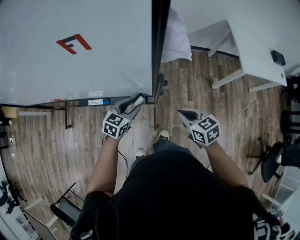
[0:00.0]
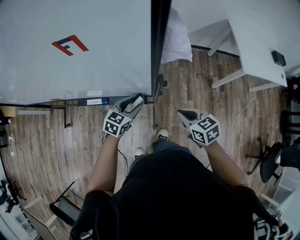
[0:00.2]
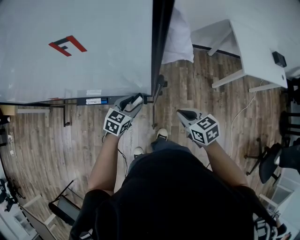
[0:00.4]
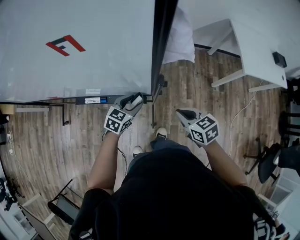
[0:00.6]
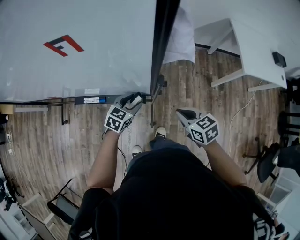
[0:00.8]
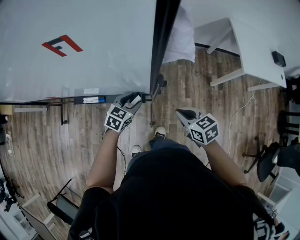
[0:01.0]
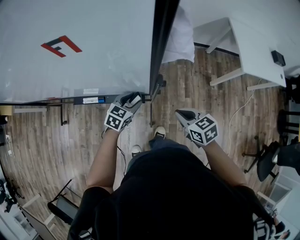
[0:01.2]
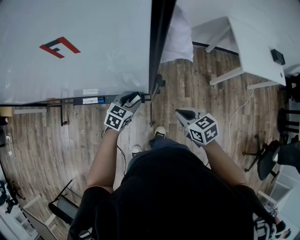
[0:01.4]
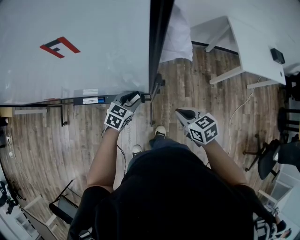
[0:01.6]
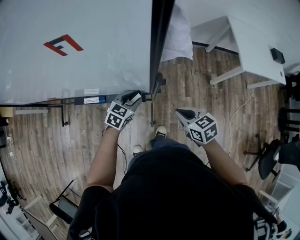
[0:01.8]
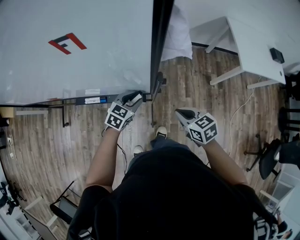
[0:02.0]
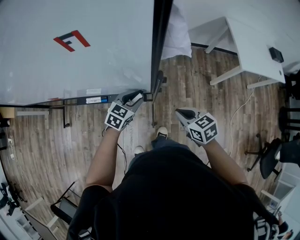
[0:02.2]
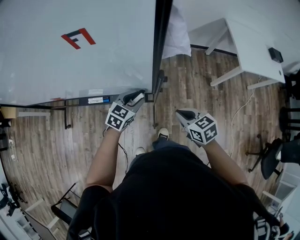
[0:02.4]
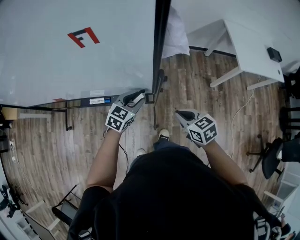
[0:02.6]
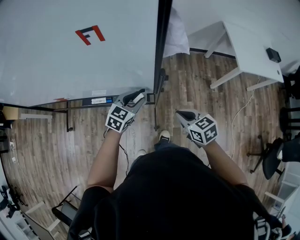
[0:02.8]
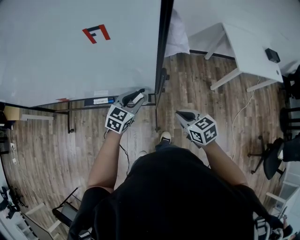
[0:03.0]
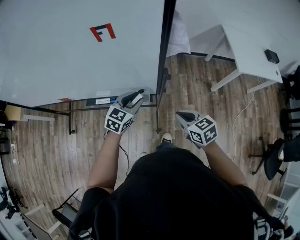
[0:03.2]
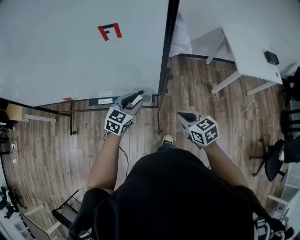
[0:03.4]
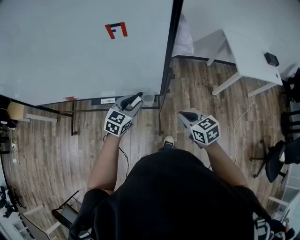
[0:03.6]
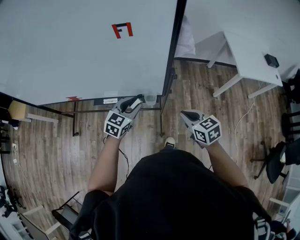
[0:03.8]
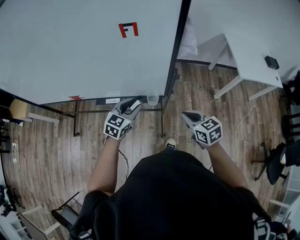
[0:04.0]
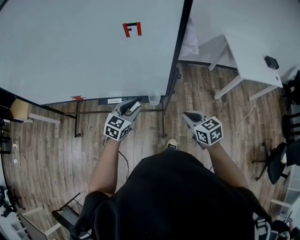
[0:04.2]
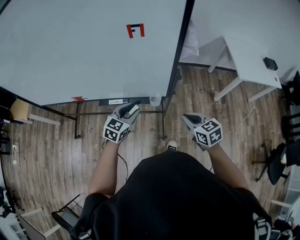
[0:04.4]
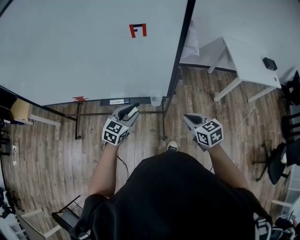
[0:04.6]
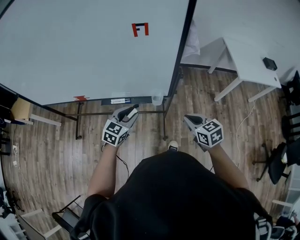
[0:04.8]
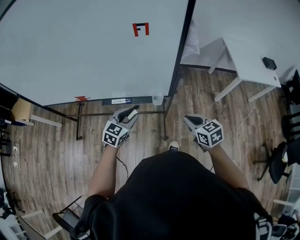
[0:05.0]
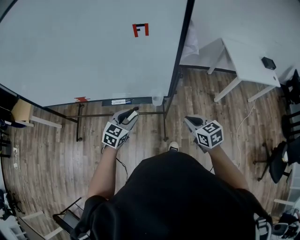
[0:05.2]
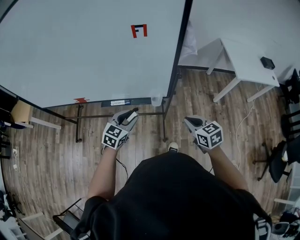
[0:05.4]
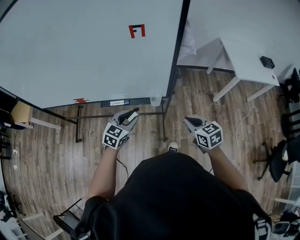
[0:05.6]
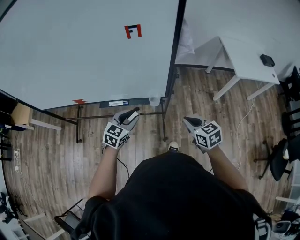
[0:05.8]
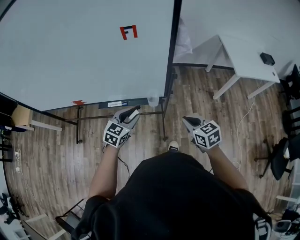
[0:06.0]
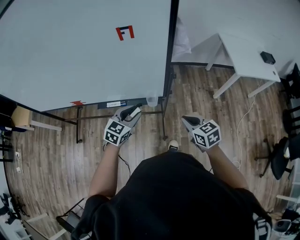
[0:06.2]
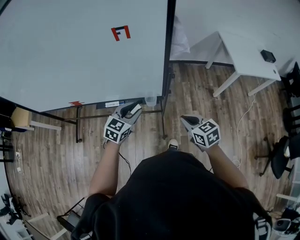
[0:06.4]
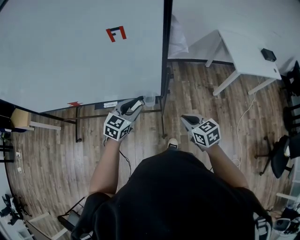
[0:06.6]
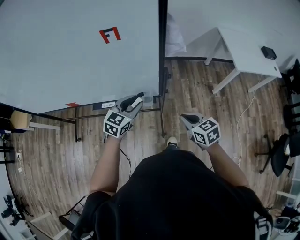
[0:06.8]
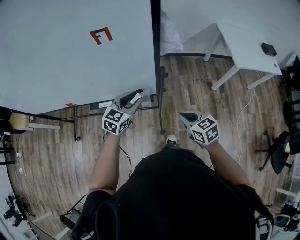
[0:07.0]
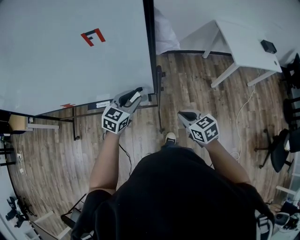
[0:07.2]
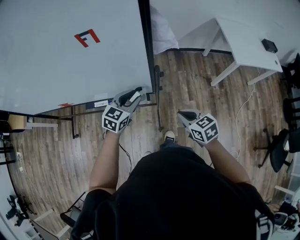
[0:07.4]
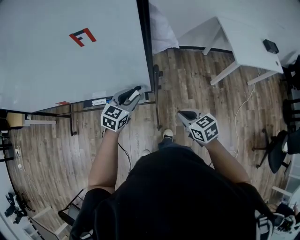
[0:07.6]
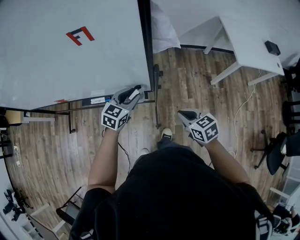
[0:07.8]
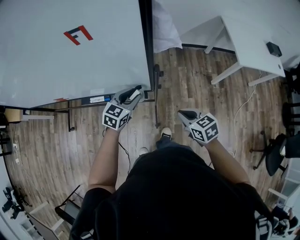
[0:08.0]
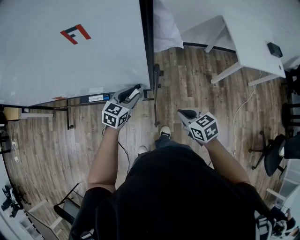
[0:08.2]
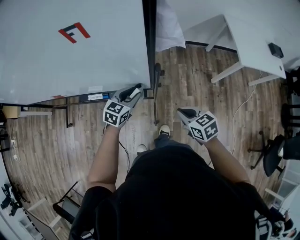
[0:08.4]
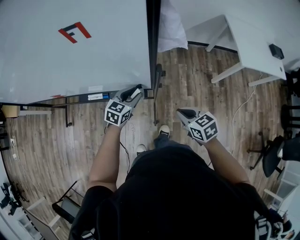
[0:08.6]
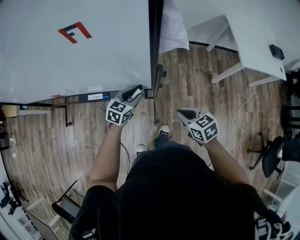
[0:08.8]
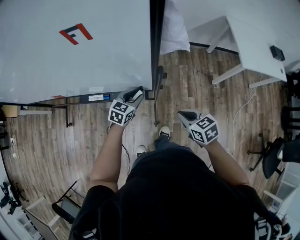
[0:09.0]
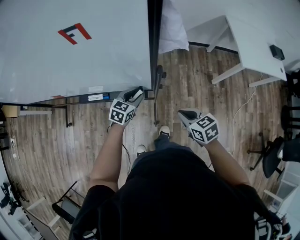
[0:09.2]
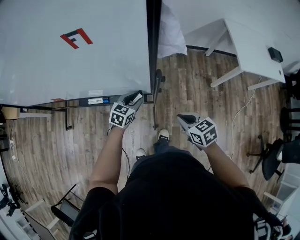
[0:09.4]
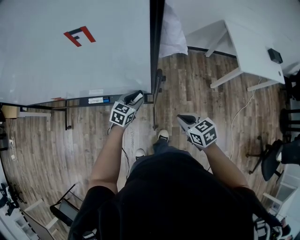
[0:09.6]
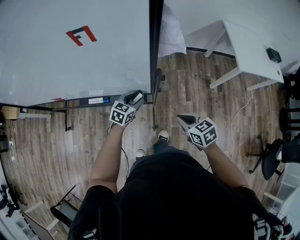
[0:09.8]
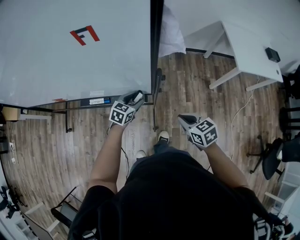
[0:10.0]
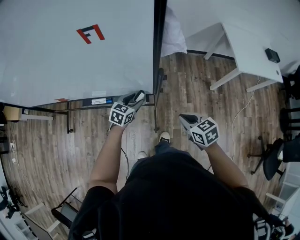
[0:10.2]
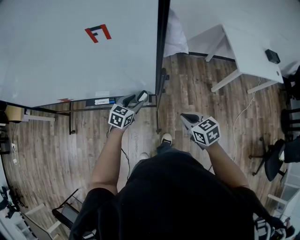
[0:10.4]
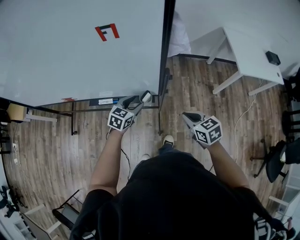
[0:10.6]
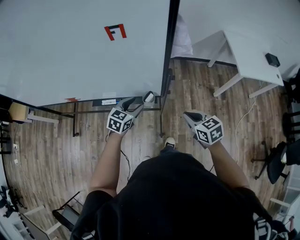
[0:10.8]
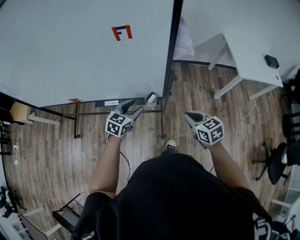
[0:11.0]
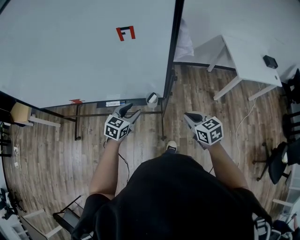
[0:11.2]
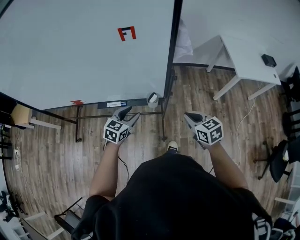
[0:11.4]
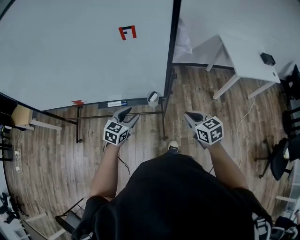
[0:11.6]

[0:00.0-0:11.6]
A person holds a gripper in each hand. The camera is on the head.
0:00.0 to 0:01.4: The left gripper shifts by about 5 cm.
0:01.4 to 0:02.8: The left gripper moves upward, roughly 10 cm. Meanwhile the right gripper changes place by roughly 5 cm.
0:02.8 to 0:04.4: The left gripper shifts about 15 cm to the left and backward. The right gripper heads backward and upward, covering some 10 cm.
0:04.4 to 0:05.8: The grippers stay close to where they were, moving slightly.
0:05.8 to 0:07.2: The right gripper shifts by roughly 5 cm, while the left gripper moves forward and to the right, approximately 15 cm.
0:07.2 to 0:08.8: The left gripper moves downward, roughly 10 cm, while the right gripper changes place by some 5 cm.
0:08.8 to 0:10.2: The grippers make only small movements.
0:10.2 to 0:11.6: The right gripper travels upward by about 5 cm; the left gripper moves backward, upward and to the left, about 20 cm.

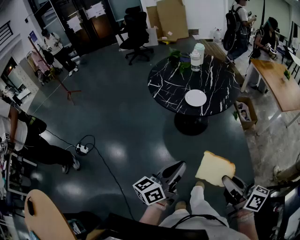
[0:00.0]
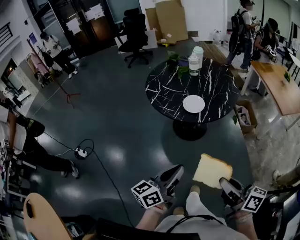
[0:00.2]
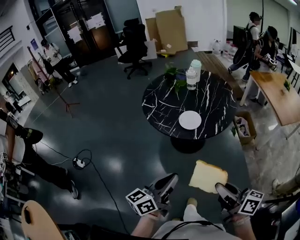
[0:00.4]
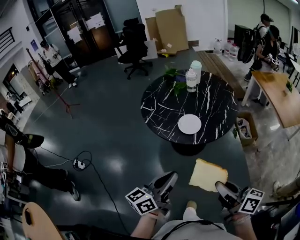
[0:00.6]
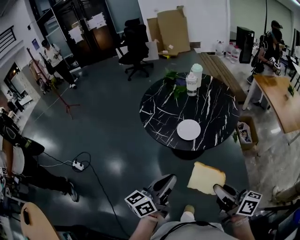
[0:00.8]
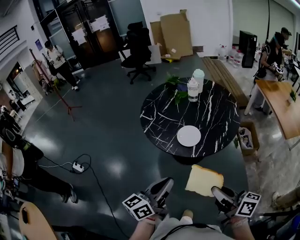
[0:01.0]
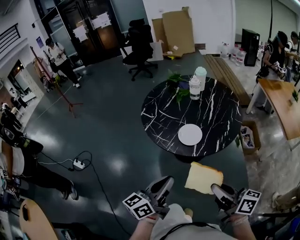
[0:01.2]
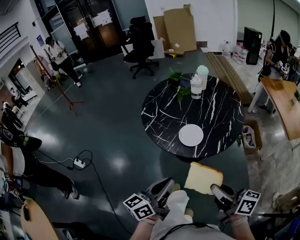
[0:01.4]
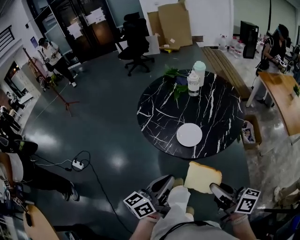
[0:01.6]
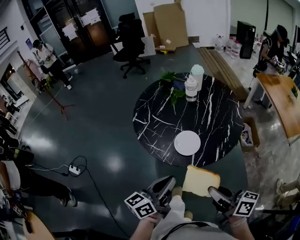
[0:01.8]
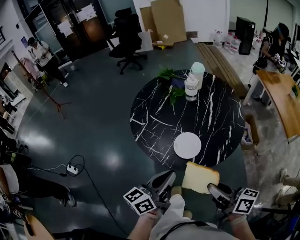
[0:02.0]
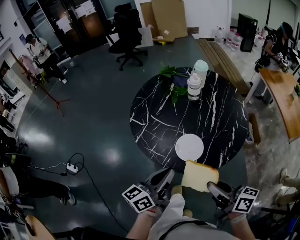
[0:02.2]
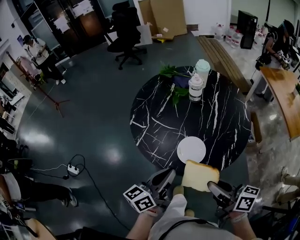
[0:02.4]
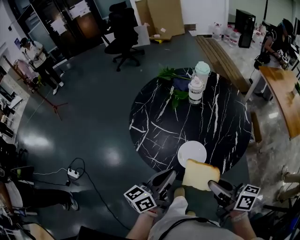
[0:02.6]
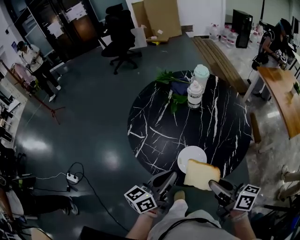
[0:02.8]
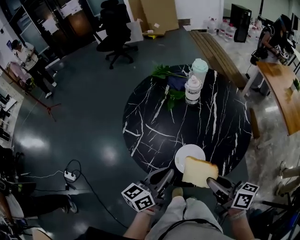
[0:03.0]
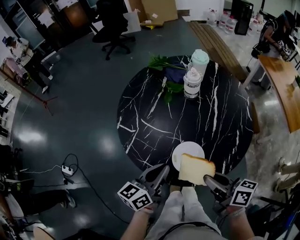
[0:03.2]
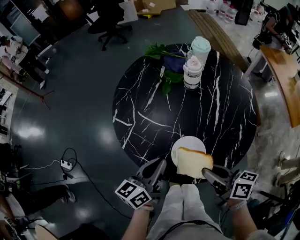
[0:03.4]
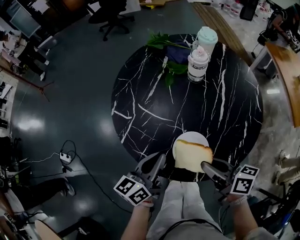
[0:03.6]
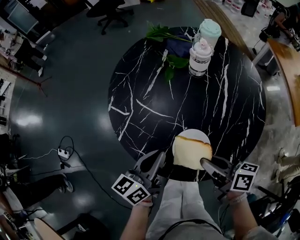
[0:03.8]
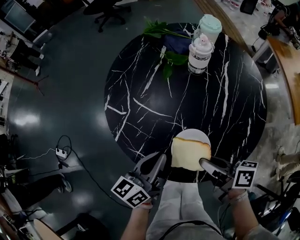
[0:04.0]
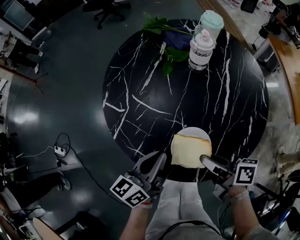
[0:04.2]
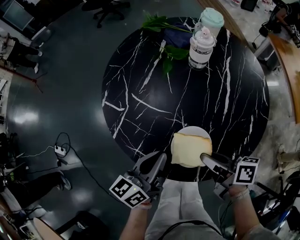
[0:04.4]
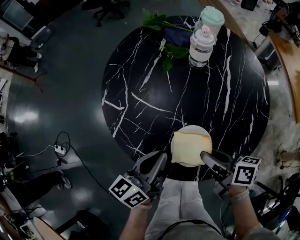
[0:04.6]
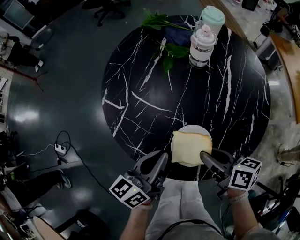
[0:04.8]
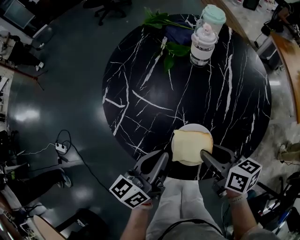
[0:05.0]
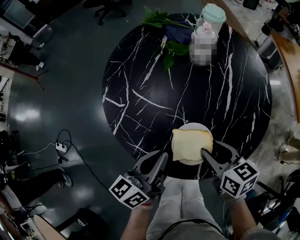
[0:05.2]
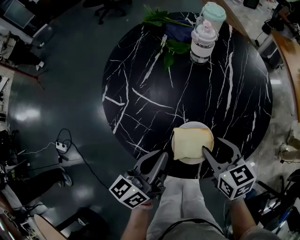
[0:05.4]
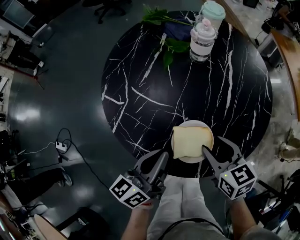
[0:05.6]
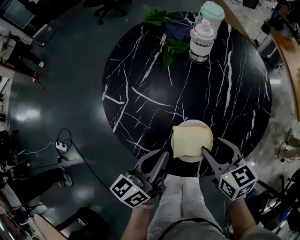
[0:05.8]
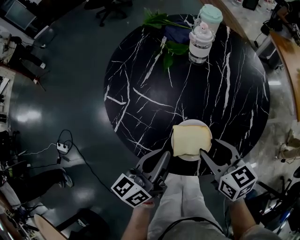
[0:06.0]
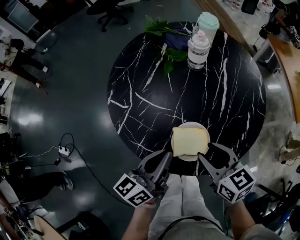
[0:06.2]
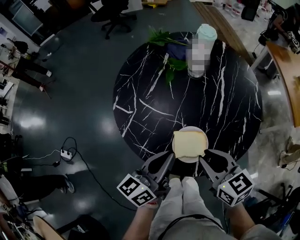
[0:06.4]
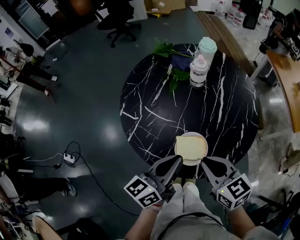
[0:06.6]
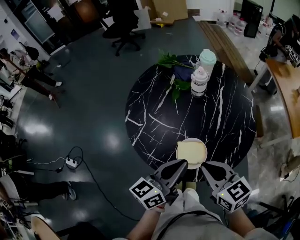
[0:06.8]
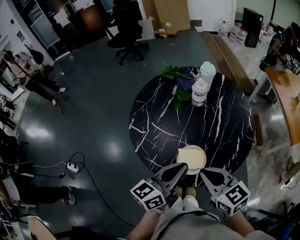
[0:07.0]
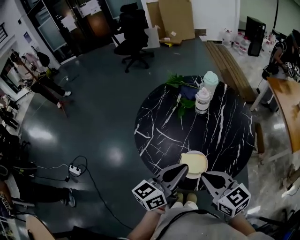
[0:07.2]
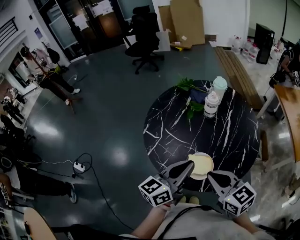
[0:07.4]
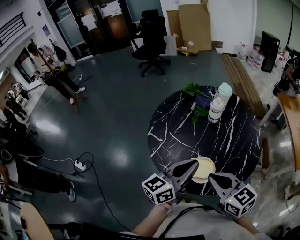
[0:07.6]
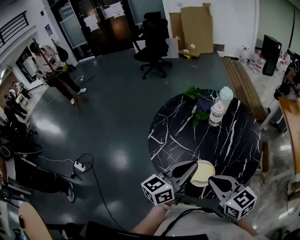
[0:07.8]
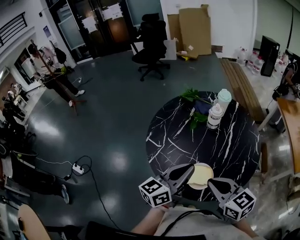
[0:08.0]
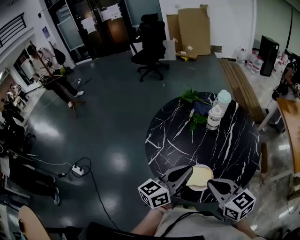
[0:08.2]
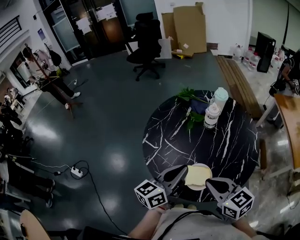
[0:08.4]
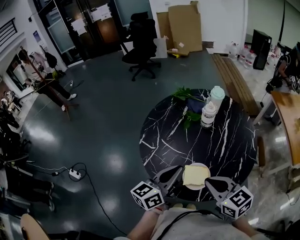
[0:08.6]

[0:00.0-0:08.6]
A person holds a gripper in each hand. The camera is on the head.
0:00.0 to 0:01.4: The two grippers go some 20 cm forward.
0:01.4 to 0:02.8: Both grippers travel together forward, some 25 cm.
0:02.8 to 0:04.4: Both grippers travel together downward and forward, roughly 15 cm. The right gripper turns by roughly 20 degrees.
0:04.4 to 0:05.8: The right gripper rotates around the line of its fingers by roughly 40 degrees, counterclockwise from behind, and opens its fingers.
0:05.8 to 0:07.2: Both grippers travel together upward, approximately 15 cm. The right gripper rotates about 20 degrees, and closes up.
0:07.2 to 0:08.6: The left gripper changes place by about 5 cm.

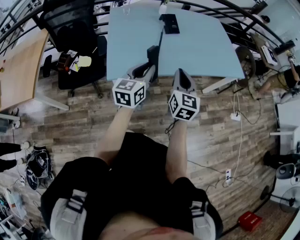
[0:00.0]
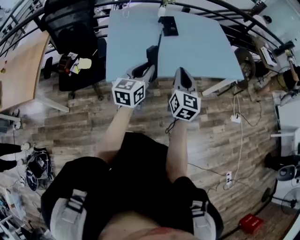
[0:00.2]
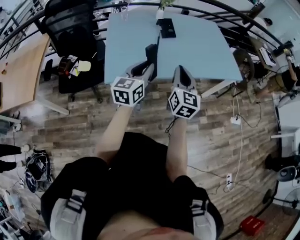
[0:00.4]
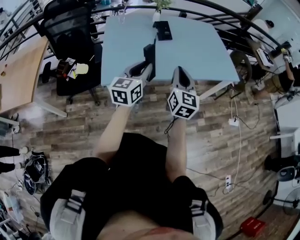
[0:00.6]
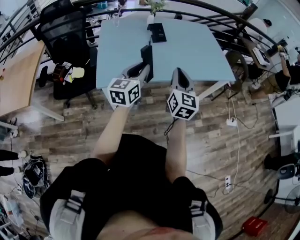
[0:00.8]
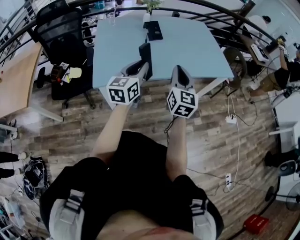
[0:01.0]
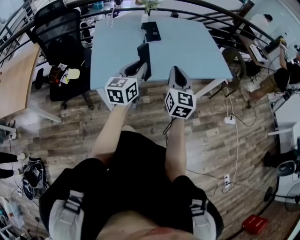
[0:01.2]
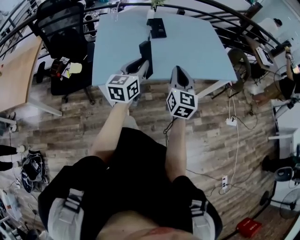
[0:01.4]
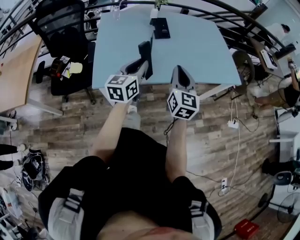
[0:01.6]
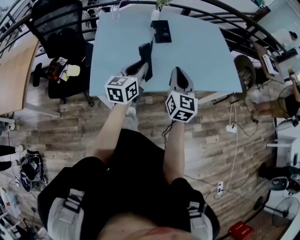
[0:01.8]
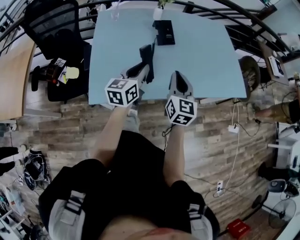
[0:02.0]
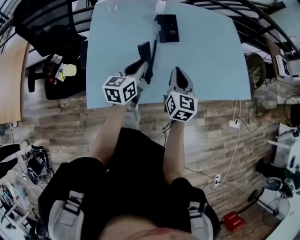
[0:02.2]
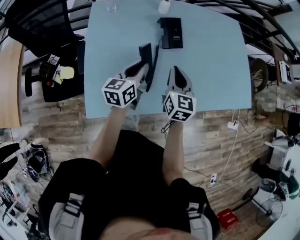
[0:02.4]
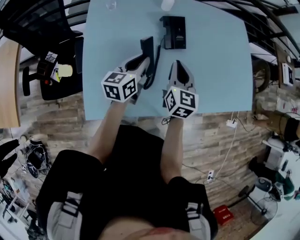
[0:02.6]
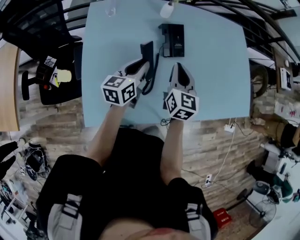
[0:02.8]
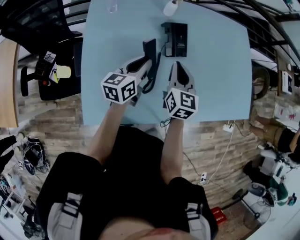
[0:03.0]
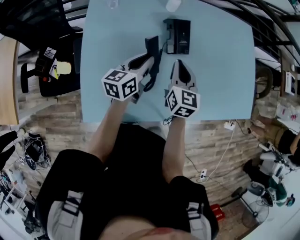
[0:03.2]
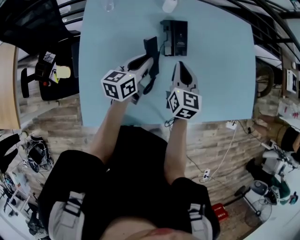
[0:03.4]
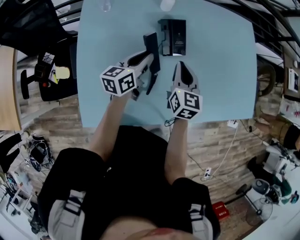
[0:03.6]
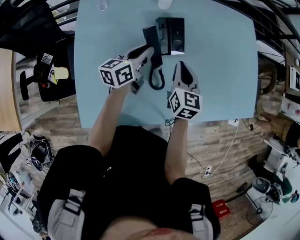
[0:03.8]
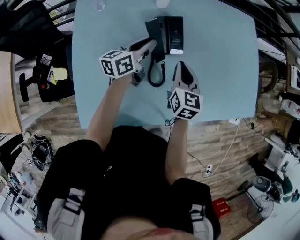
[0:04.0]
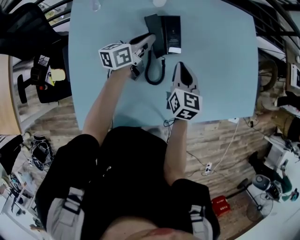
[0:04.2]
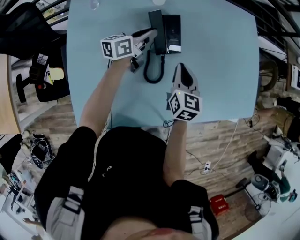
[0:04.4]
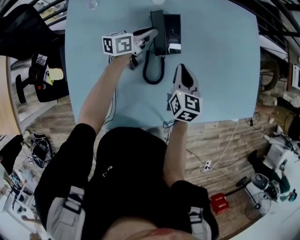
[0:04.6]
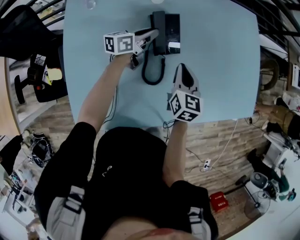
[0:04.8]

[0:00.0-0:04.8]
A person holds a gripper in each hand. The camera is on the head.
0:00.0 to 0:01.6: The left gripper travels forward by approximately 10 cm. The right gripper shifts some 10 cm forward and to the right.
0:01.6 to 0:03.2: Both grippers travel together forward, some 35 cm. The left gripper swivels roughly 20 degrees.
0:03.2 to 0:04.8: The left gripper moves forward and downward, about 20 cm, and rotates approximately 20 degrees. The right gripper moves to the right, downward and forward, some 10 cm.
